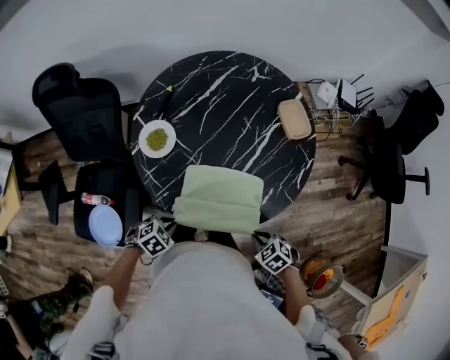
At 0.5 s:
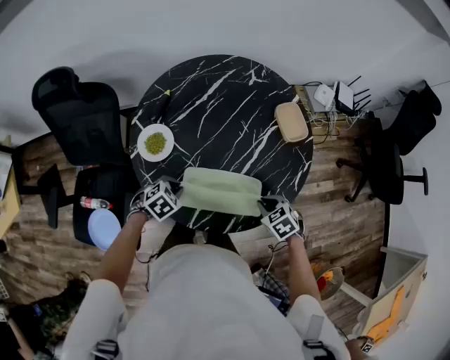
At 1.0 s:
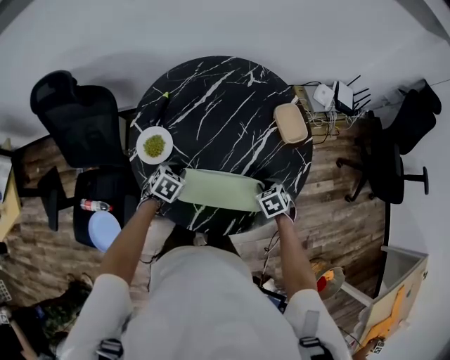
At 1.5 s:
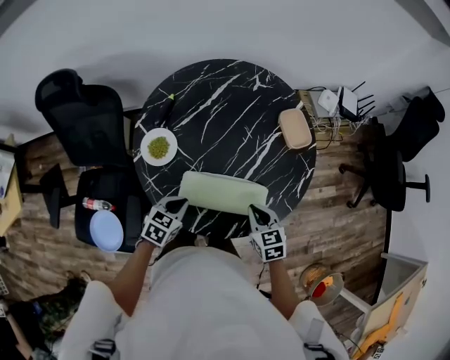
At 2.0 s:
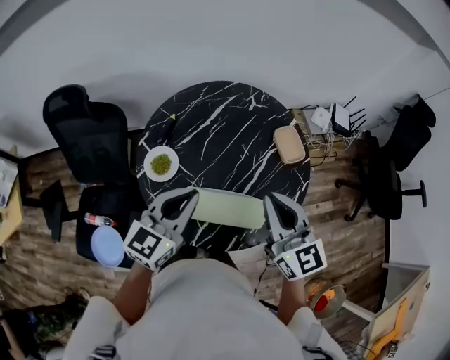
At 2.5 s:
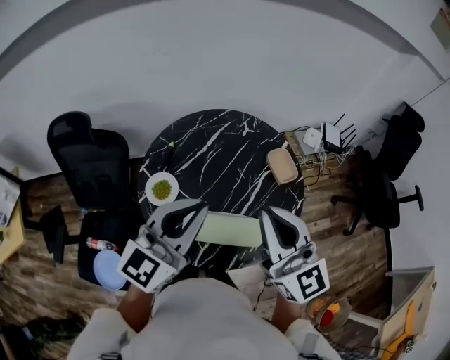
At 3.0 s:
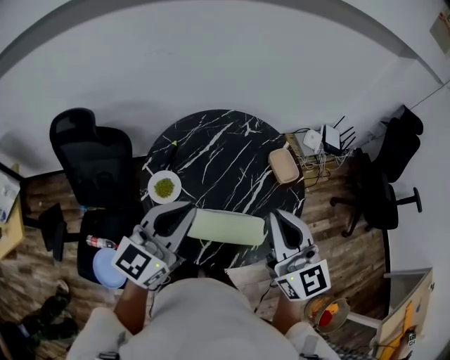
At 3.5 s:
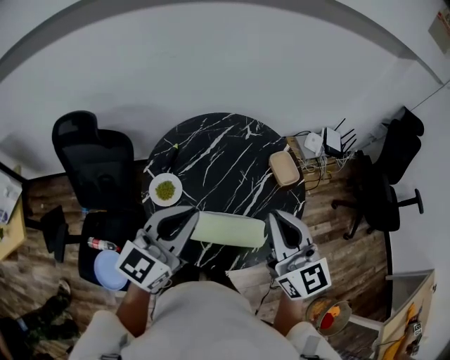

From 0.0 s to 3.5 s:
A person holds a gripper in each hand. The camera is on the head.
From 0.0 s to 2.0 s: The two grippers go roughly 30 cm upward. The right gripper points its fingers roughly 60 degrees further upward; the left gripper tips its fingers upward by roughly 60 degrees.
From 2.0 s to 3.5 s: The grippers both shift upward by roughly 10 cm.

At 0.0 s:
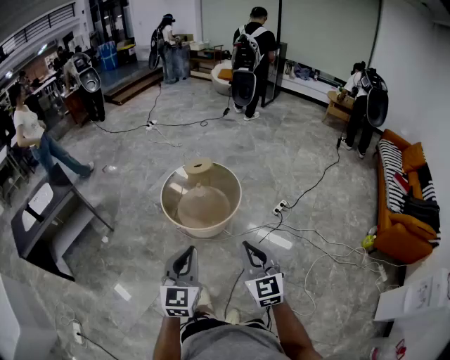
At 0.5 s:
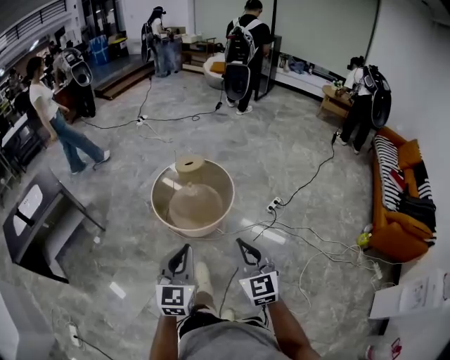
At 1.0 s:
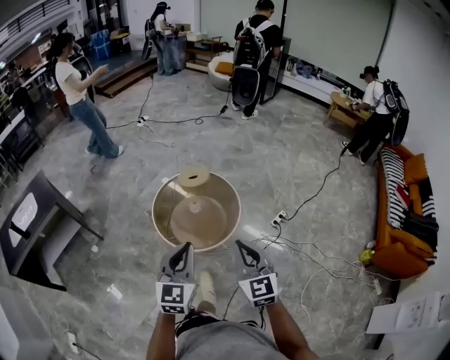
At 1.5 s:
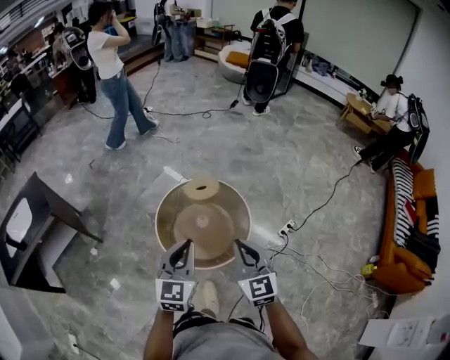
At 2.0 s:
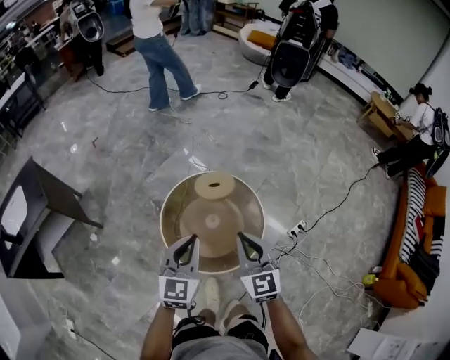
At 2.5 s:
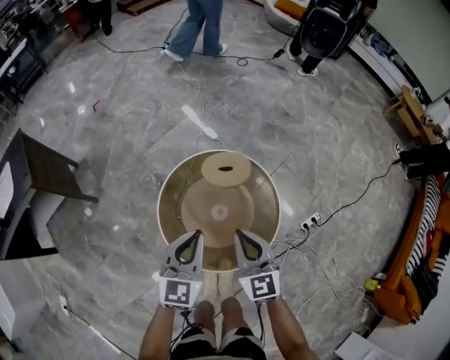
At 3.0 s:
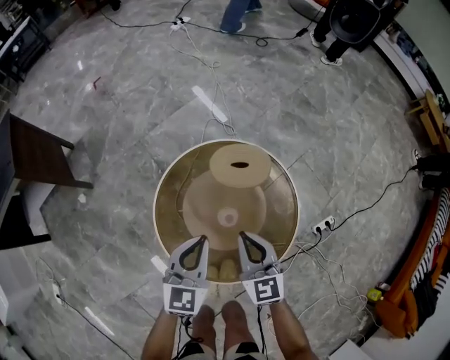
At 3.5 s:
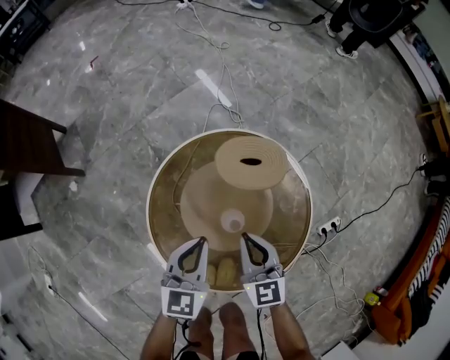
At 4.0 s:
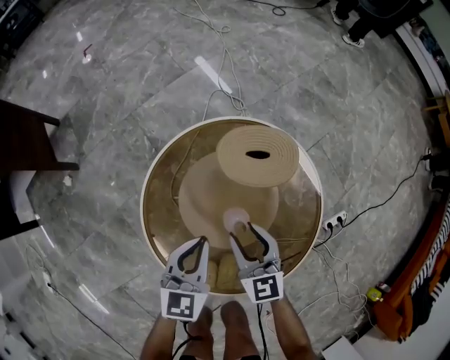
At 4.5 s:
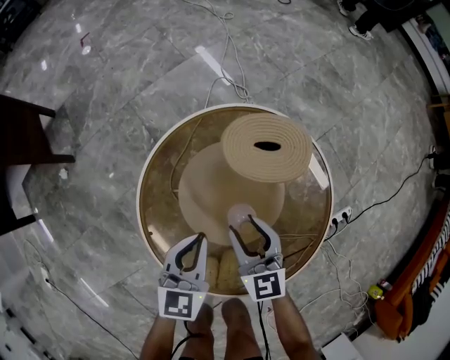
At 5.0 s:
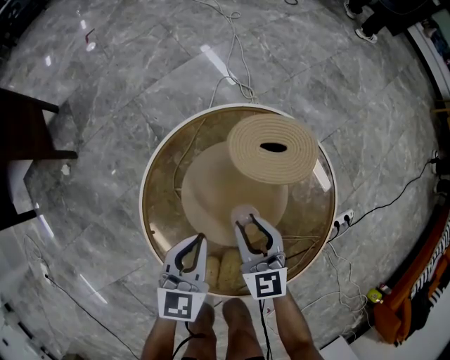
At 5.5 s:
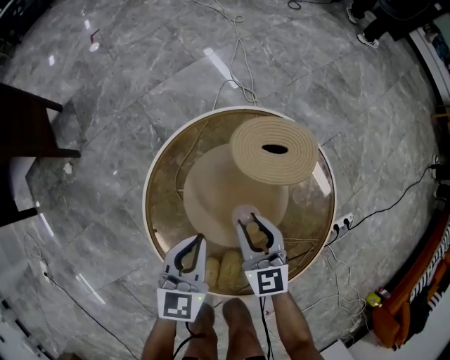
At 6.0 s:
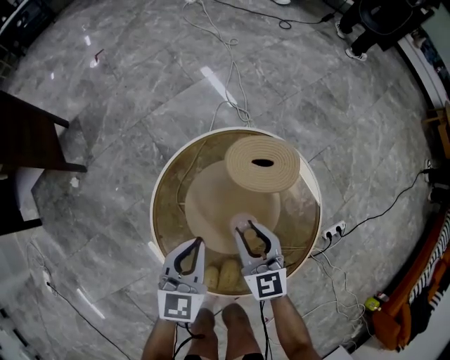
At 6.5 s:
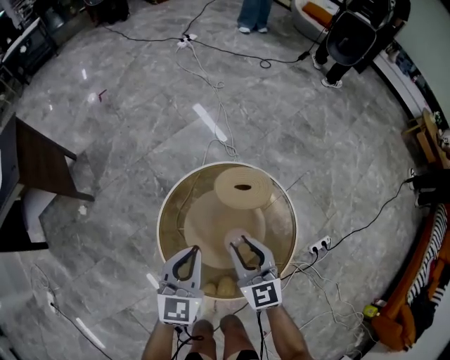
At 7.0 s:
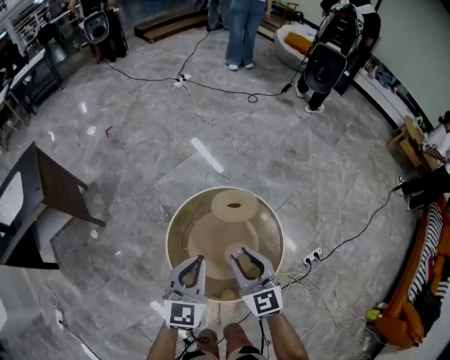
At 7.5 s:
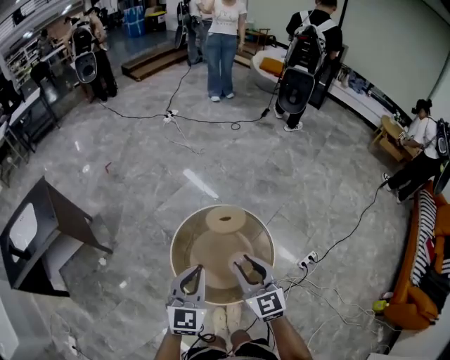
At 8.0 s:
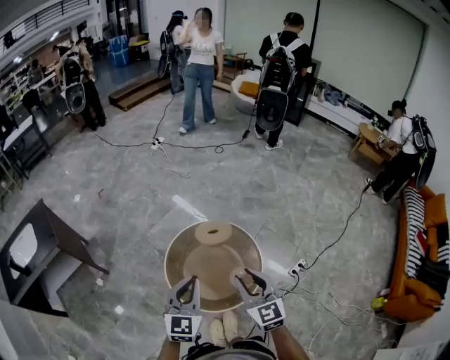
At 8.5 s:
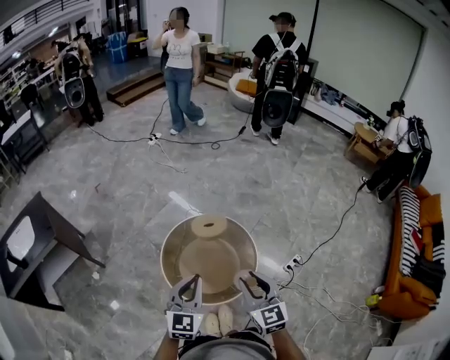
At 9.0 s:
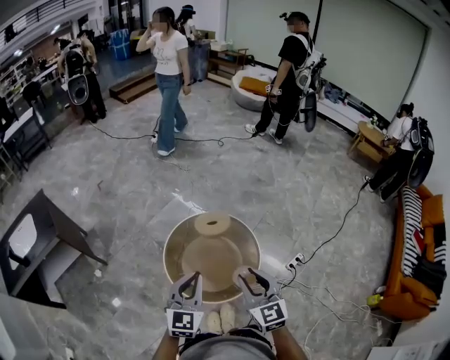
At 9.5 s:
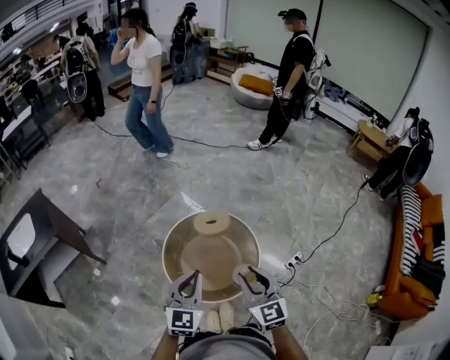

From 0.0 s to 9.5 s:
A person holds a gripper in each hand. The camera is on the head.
From 0.0 s to 2.0 s: The two grippers travel together, forward, approximately 60 cm.
From 2.0 s to 4.0 s: Both grippers move downward, some 50 cm. The right gripper swivels about 20 degrees, and opens, while the left gripper swivels roughly 20 degrees.
From 4.0 s to 5.5 s: The grippers make only small movements.
From 5.5 s to 7.5 s: The grippers both shift upward by some 50 cm. The left gripper turns by roughly 30 degrees.
From 7.5 s to 9.5 s: The left gripper goes about 10 cm backward; the right gripper heads backward and to the right, covering about 15 cm.

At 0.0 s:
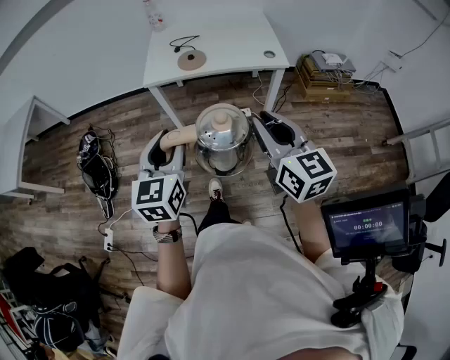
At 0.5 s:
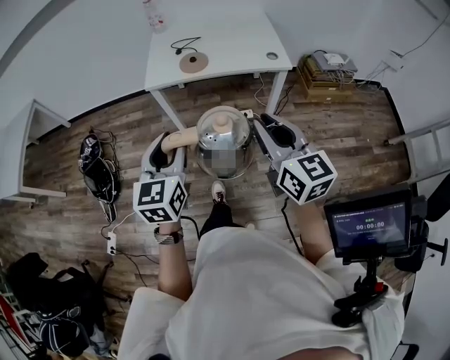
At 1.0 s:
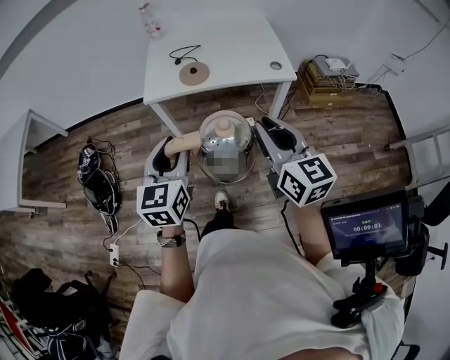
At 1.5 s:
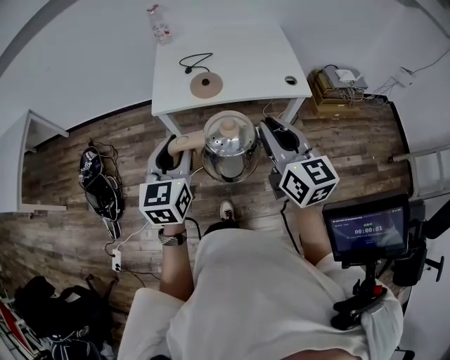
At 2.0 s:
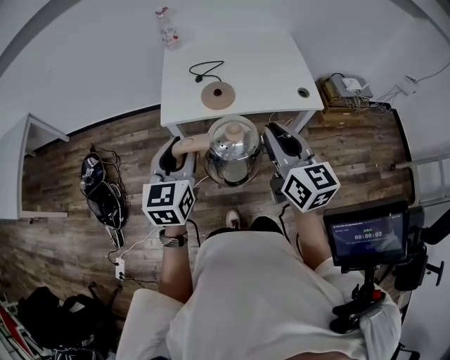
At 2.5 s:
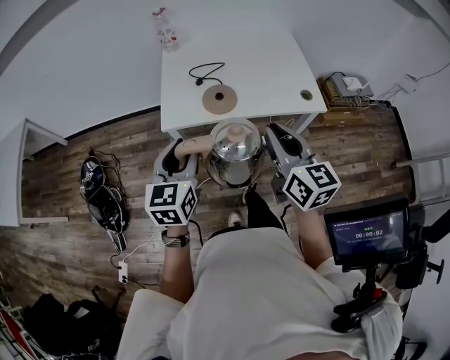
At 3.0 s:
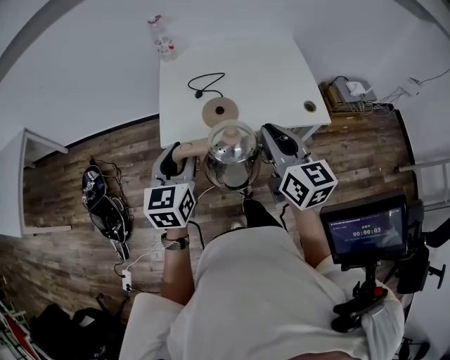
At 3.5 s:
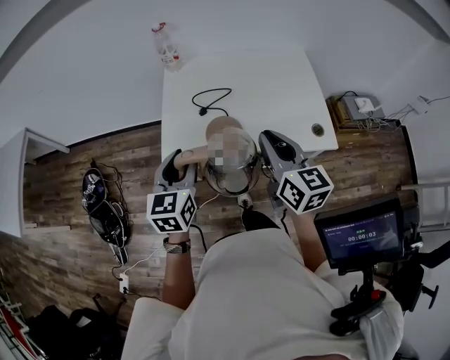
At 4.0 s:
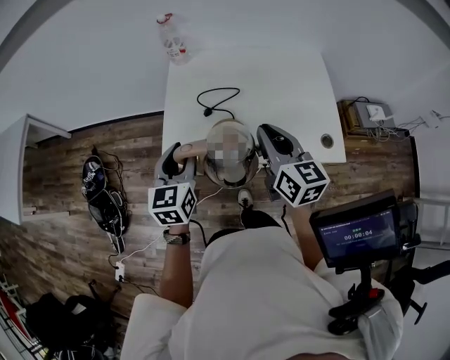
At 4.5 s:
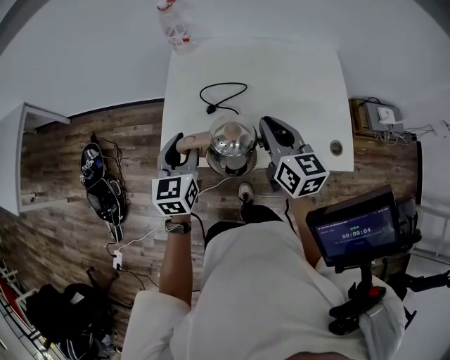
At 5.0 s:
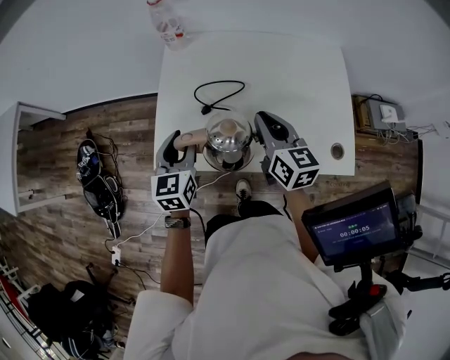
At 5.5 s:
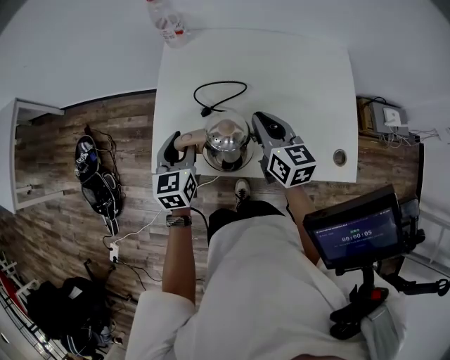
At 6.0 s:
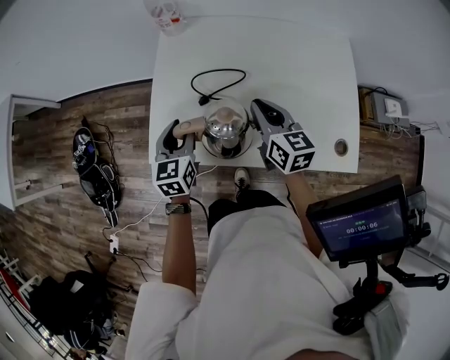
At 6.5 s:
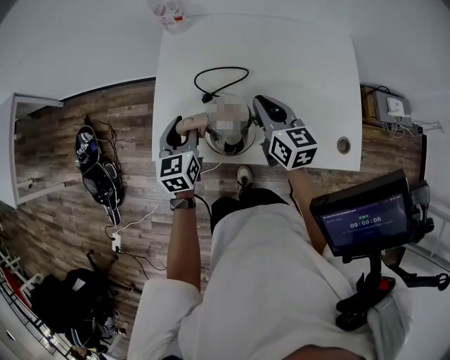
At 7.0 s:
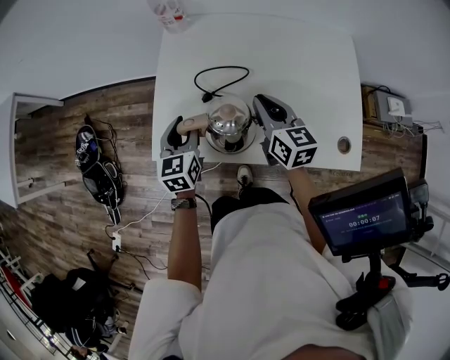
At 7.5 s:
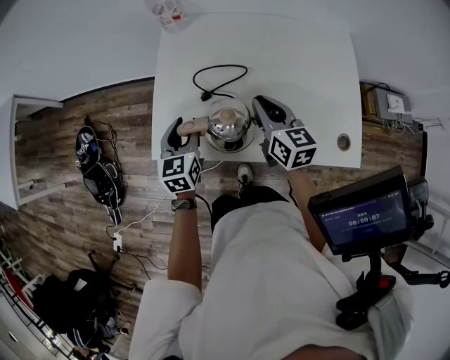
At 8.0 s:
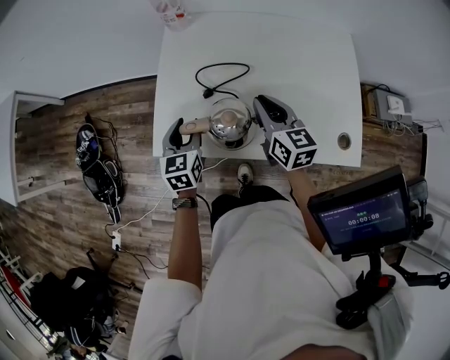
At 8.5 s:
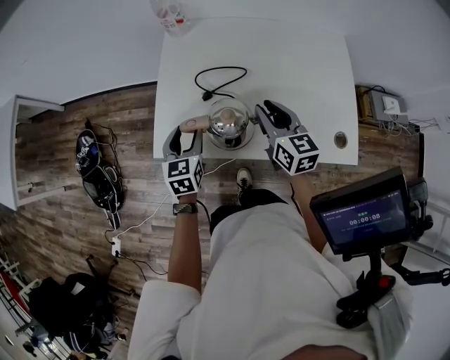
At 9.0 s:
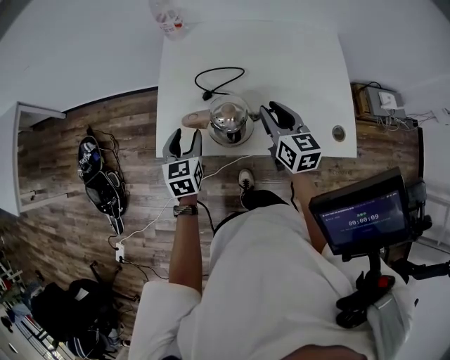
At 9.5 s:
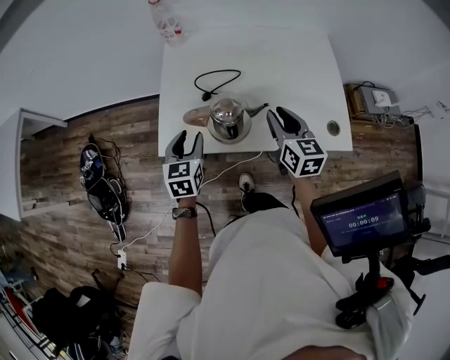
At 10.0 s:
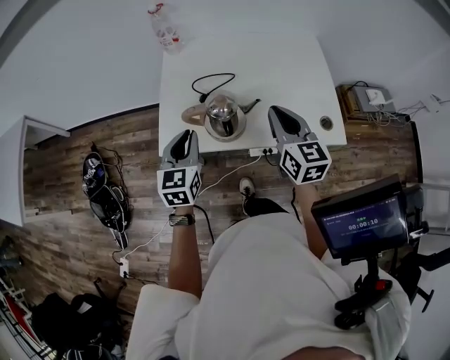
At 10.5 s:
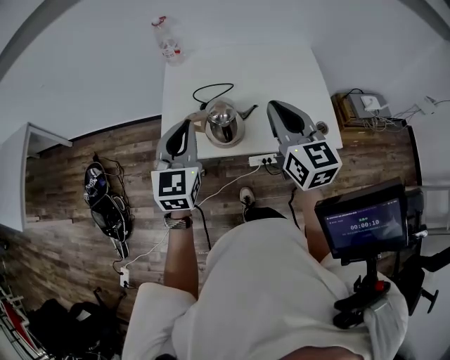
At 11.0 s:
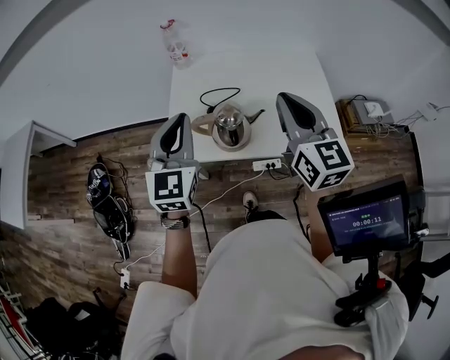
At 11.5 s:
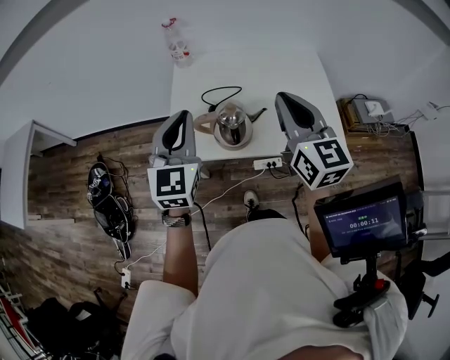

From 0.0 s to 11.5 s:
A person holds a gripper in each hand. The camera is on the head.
From 0.0 s to 2.0 s: The grippers both shift forward by some 30 cm.
From 2.0 s to 4.0 s: Both grippers move forward, about 25 cm.
From 4.0 s to 6.0 s: The grippers both shift downward and forward by roughly 20 cm.
From 6.0 s to 7.5 s: Both grippers stay about where they are.
From 7.5 s to 9.5 s: The two grippers go about 15 cm backward and upward. The right gripper opens up.
From 9.5 s to 11.5 s: Both grippers travel together upward, about 20 cm. The right gripper closes up; the left gripper turns by some 30 degrees, and closes.

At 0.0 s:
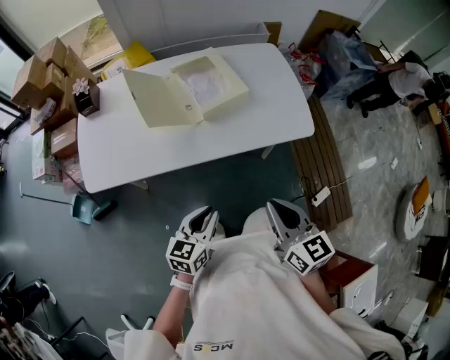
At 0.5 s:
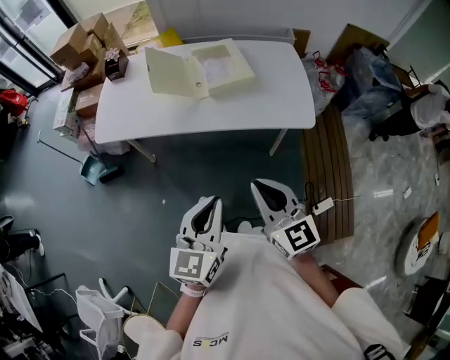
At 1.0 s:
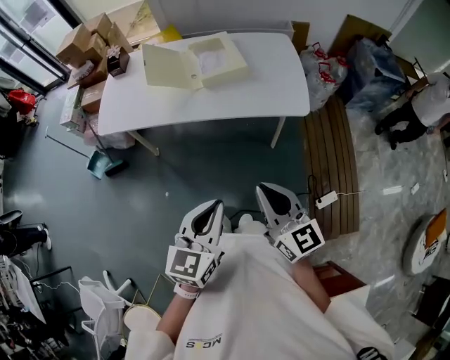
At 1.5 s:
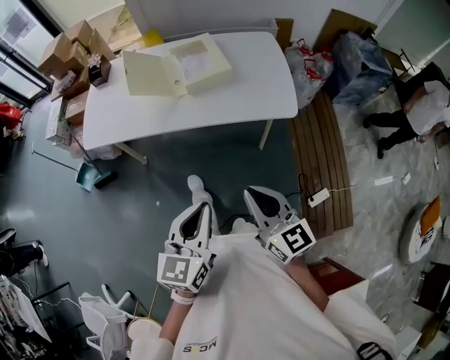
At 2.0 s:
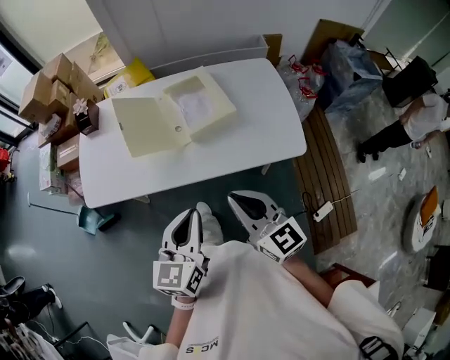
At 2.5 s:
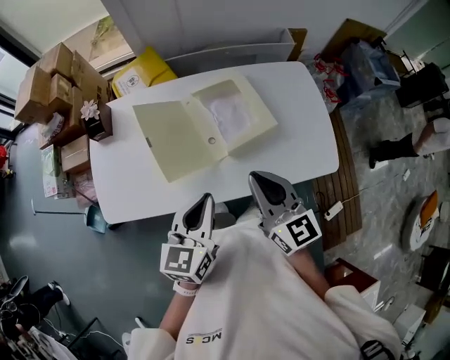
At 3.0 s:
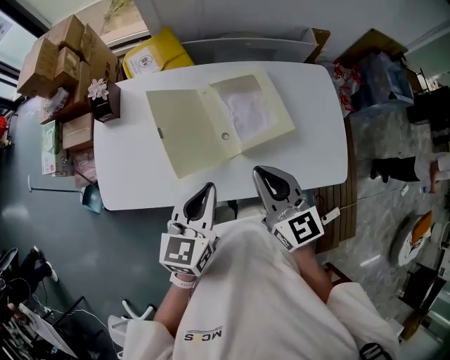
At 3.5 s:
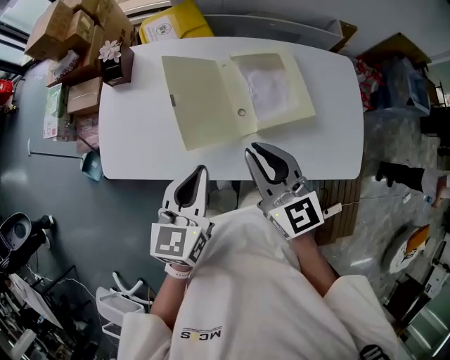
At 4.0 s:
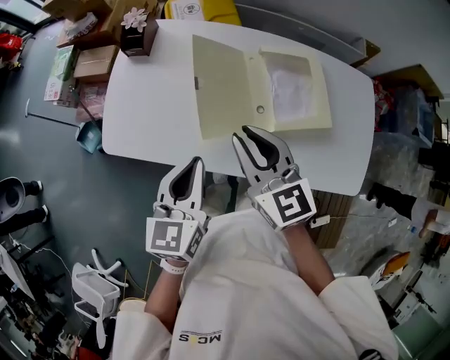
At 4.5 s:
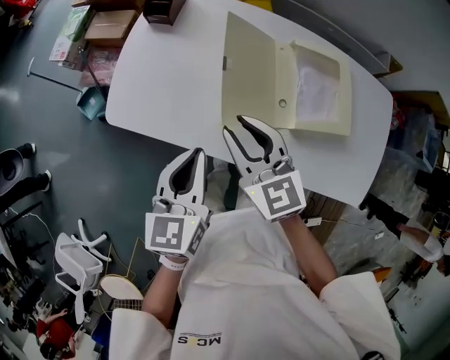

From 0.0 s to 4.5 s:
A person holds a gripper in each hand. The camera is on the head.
From 0.0 s to 2.0 s: The left gripper heads upward, covering roughly 15 cm, and goes backward and returns, approximately 20 cm each way. Meanwhile the right gripper travels backward and back again, approximately 15 cm each way.
From 2.0 s to 4.5 s: The left gripper ends up roughly 30 cm from where it was, and changes its angle by about 30 degrees; the right gripper shifts by about 40 cm, swivels about 30 degrees, and opens its fingers.
